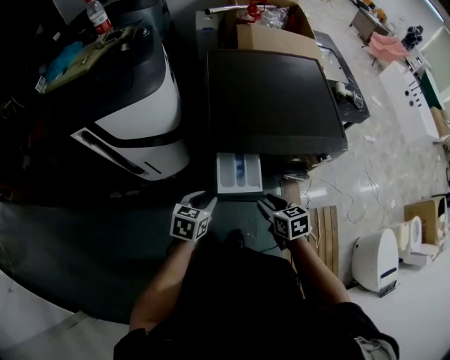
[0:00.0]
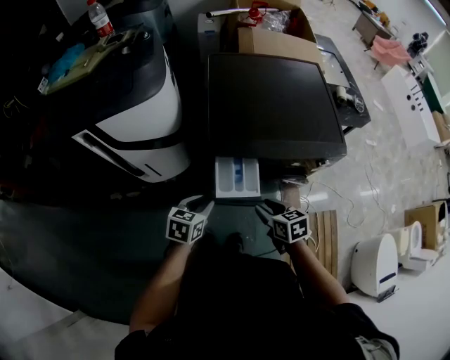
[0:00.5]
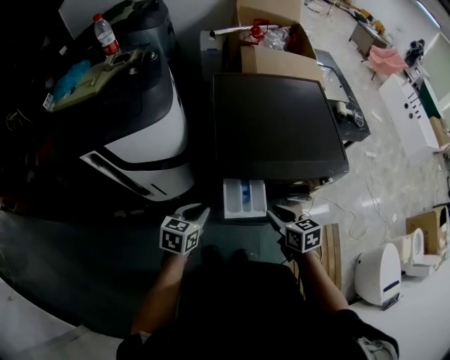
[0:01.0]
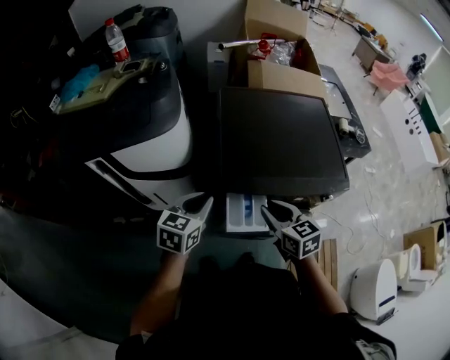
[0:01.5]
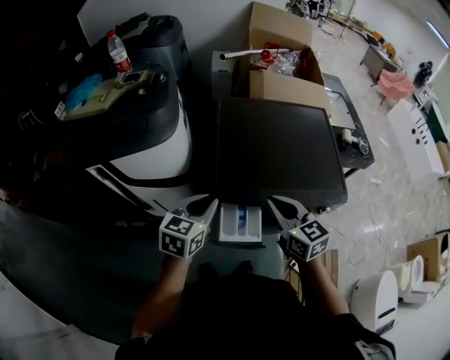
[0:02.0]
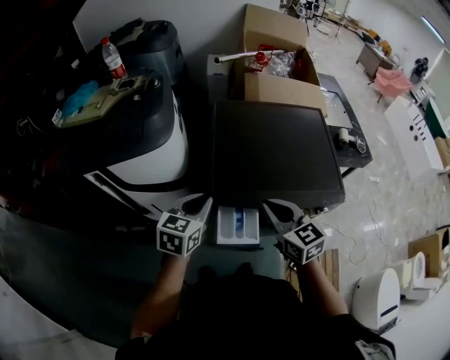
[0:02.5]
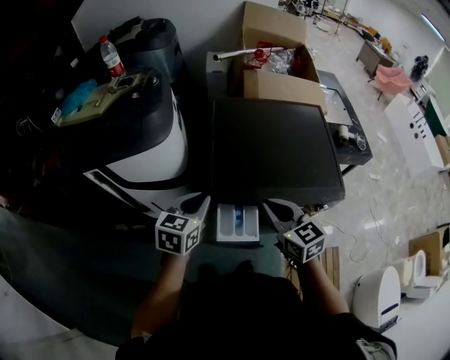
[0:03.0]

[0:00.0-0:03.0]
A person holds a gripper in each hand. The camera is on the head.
0:00.0 to 0:01.5: Both grippers move upward and forward, approximately 15 cm.
0:01.5 to 0:03.0: The right gripper heads upward, covering roughly 5 cm, and closes, while the left gripper moves some 5 cm.

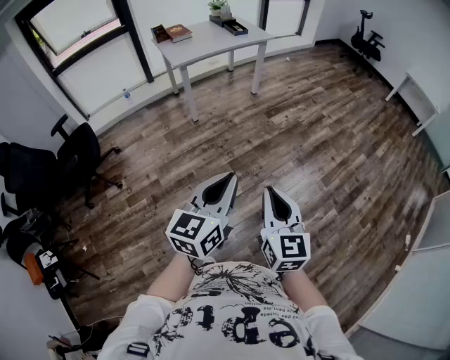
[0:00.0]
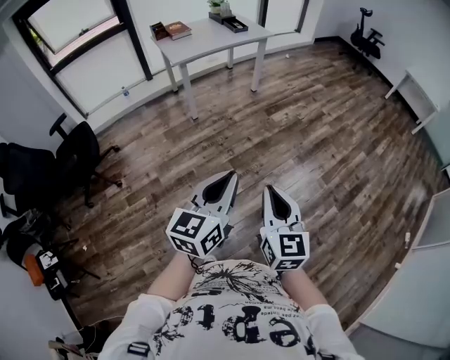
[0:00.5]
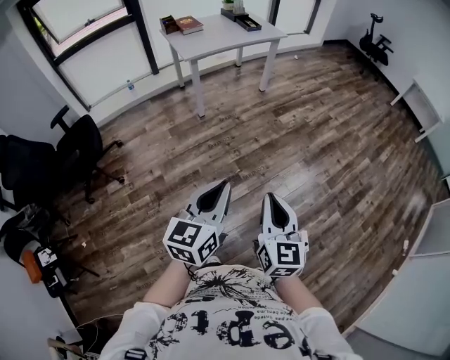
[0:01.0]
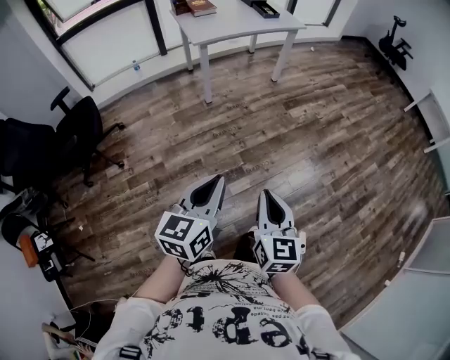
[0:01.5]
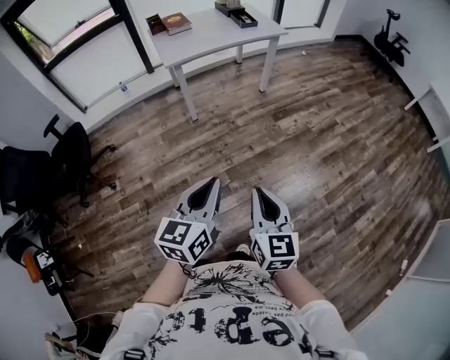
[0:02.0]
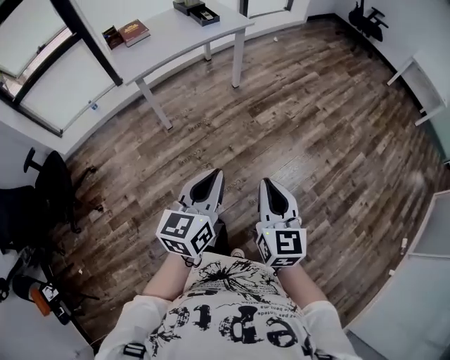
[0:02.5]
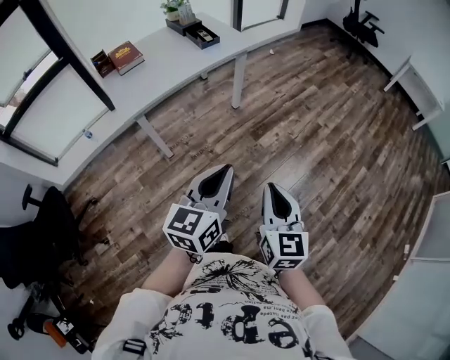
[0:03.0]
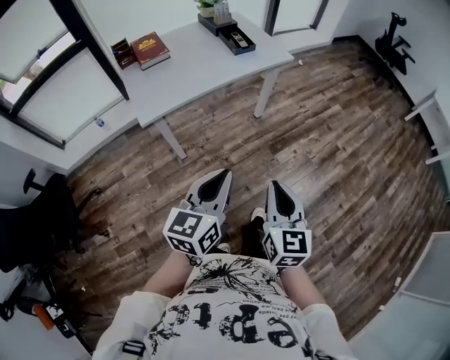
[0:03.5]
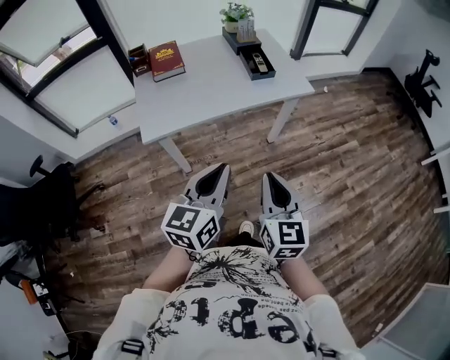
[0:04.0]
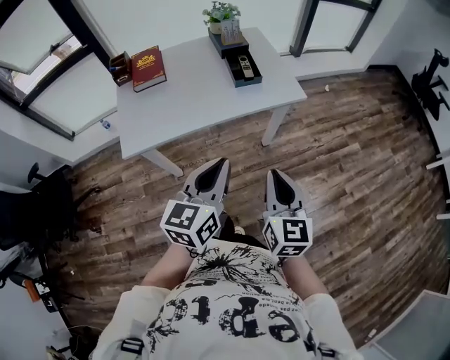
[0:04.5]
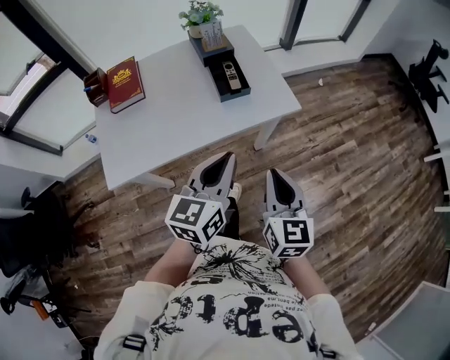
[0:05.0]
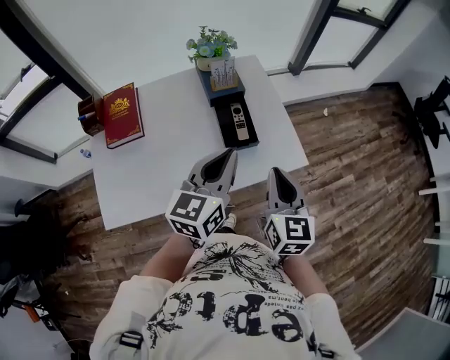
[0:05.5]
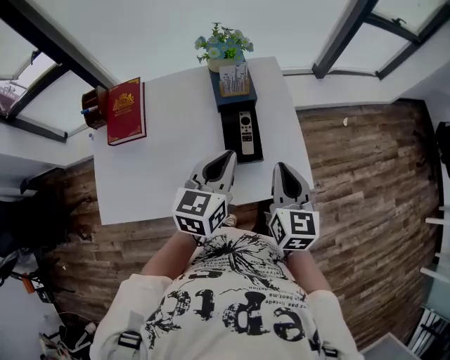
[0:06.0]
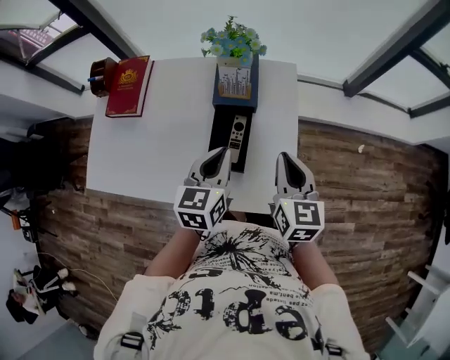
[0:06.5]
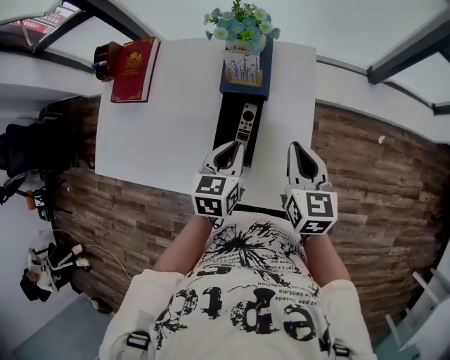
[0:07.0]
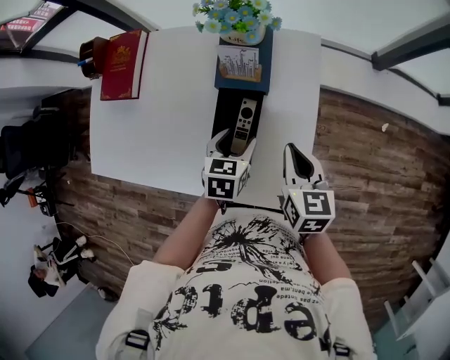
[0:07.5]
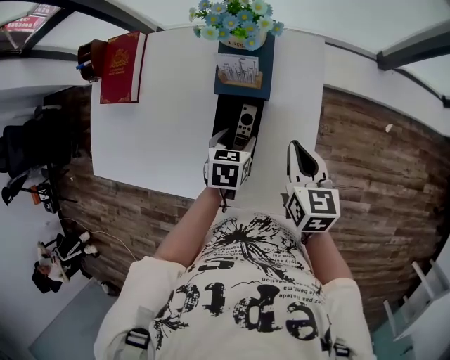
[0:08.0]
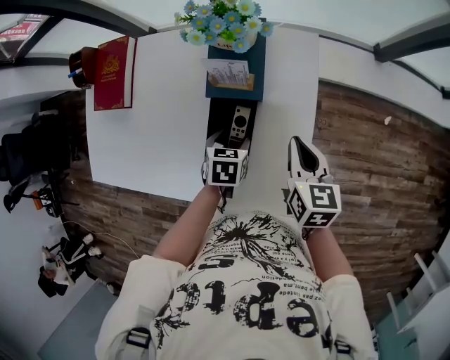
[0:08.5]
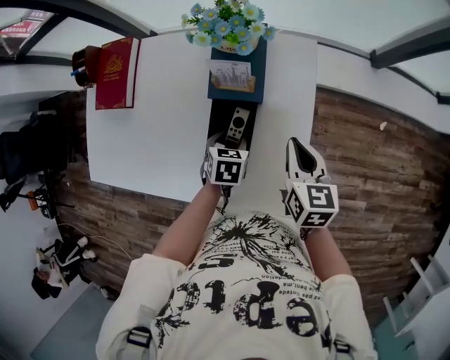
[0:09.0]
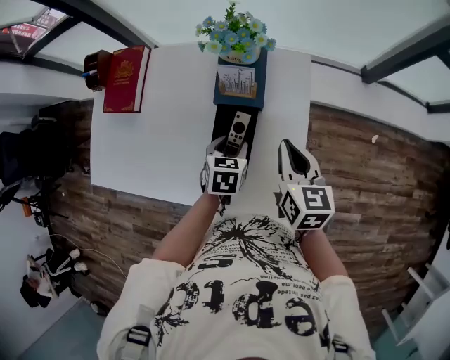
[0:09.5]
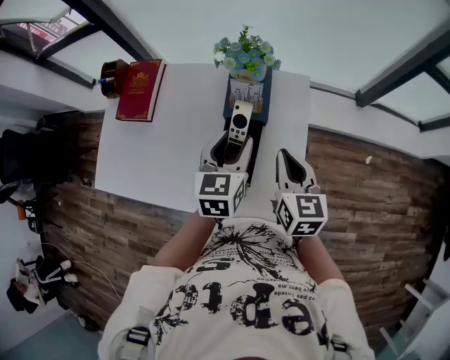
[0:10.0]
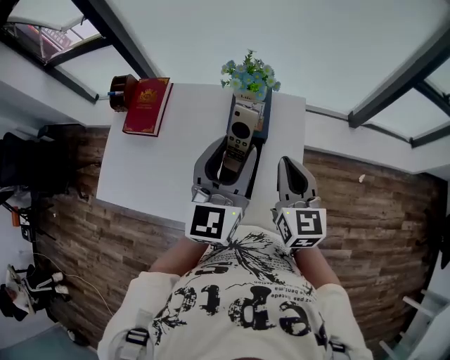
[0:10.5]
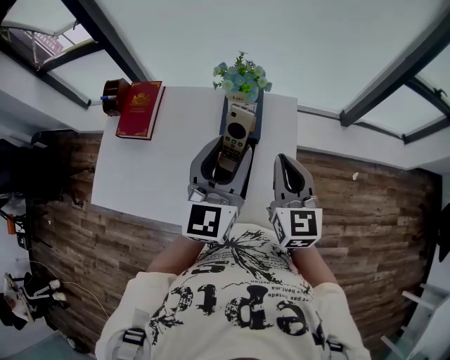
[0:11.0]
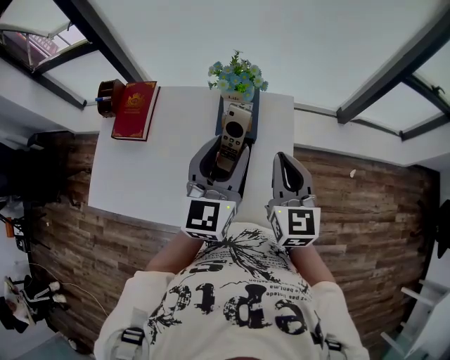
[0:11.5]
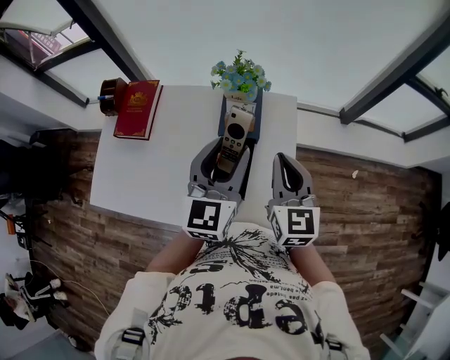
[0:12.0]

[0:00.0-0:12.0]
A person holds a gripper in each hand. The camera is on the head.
0:00.0 to 0:02.0: Both grippers move forward, some 20 cm.
0:02.0 to 0:04.0: Both grippers are carried forward, some 60 cm.
0:04.0 to 0:06.0: The two grippers travel together, forward, roughly 60 cm.
0:06.0 to 0:08.0: The right gripper heads forward, downward and to the right, covering some 20 cm, and rotates approximately 30 degrees. Meanwhile the left gripper moves downward and forward, approximately 25 cm, tilts its fingers roughly 40 degrees downward, and opens up.
0:08.0 to 0:10.0: The right gripper is displaced upward by about 10 cm; the left gripper heads upward, covering approximately 20 cm, and points its fingers some 30 degrees further upward.
0:10.0 to 0:12.0: The two grippers go approximately 10 cm upward. The left gripper changes its angle by approximately 20 degrees.

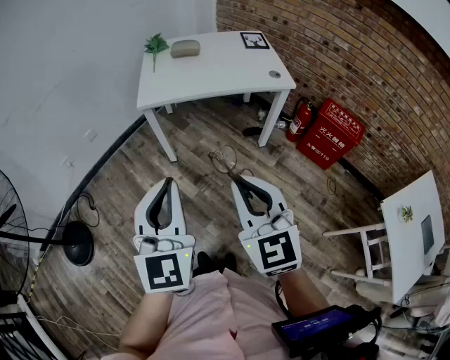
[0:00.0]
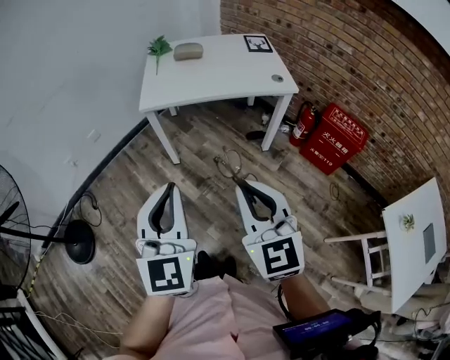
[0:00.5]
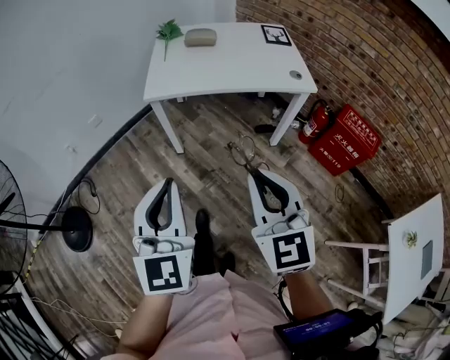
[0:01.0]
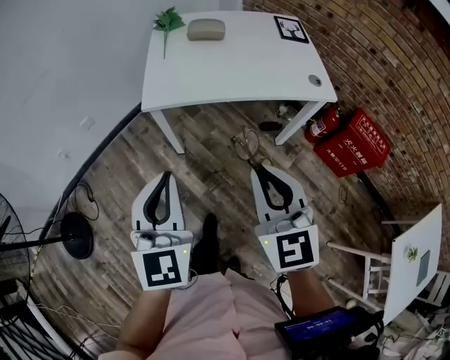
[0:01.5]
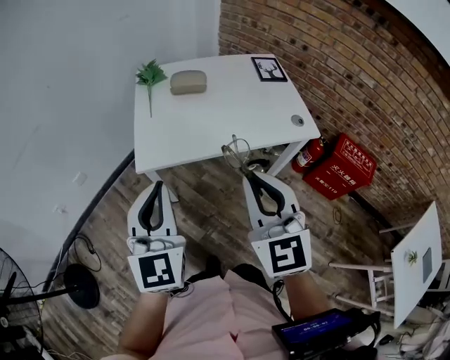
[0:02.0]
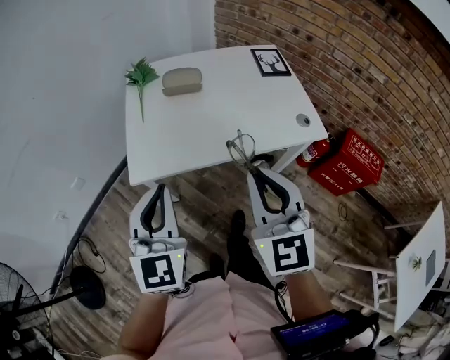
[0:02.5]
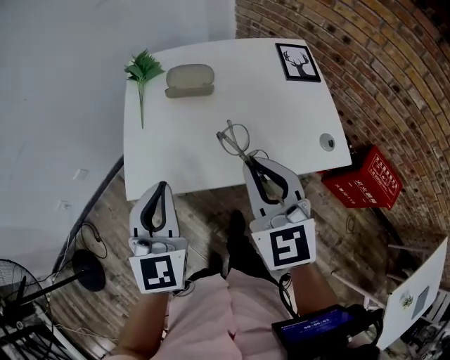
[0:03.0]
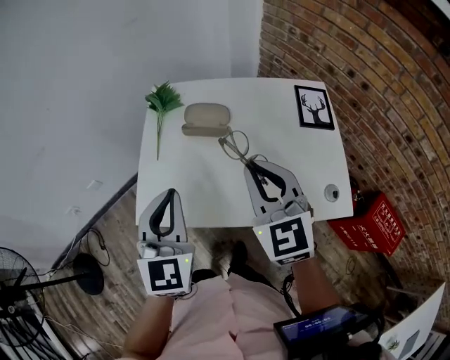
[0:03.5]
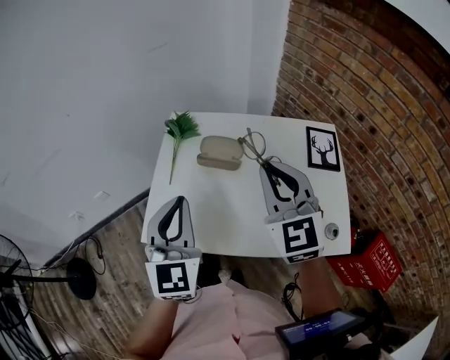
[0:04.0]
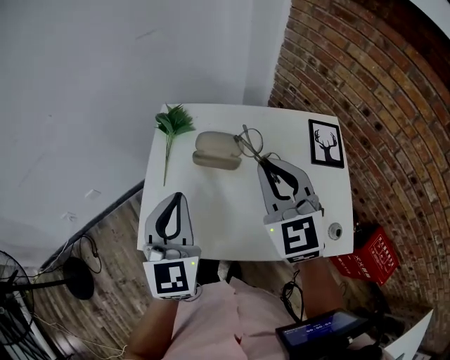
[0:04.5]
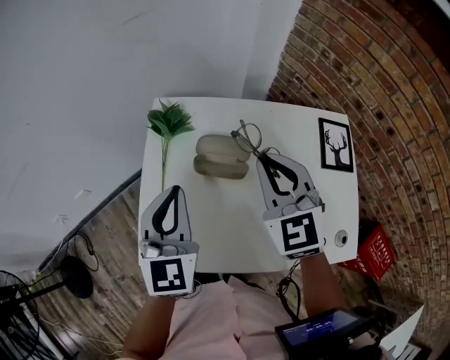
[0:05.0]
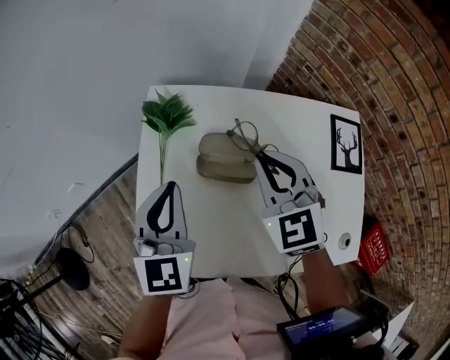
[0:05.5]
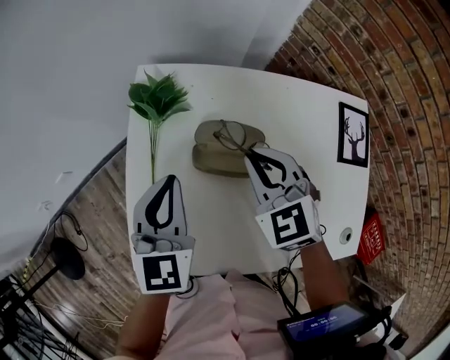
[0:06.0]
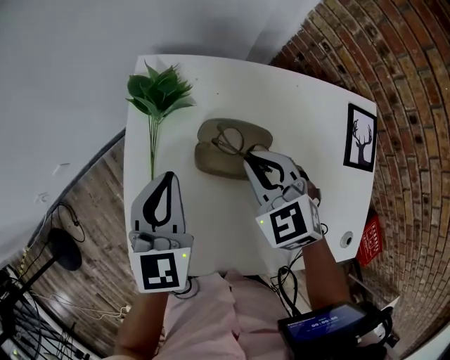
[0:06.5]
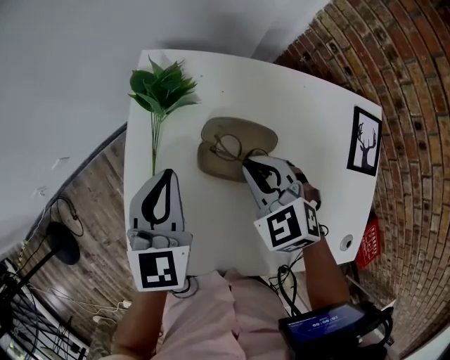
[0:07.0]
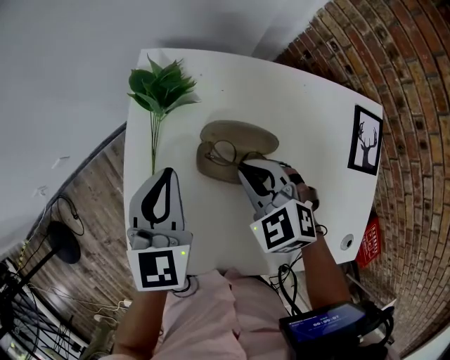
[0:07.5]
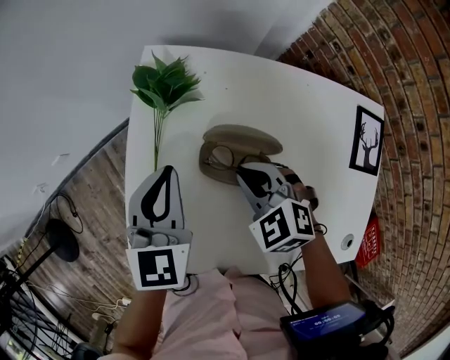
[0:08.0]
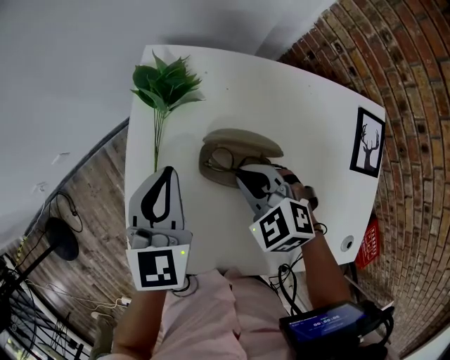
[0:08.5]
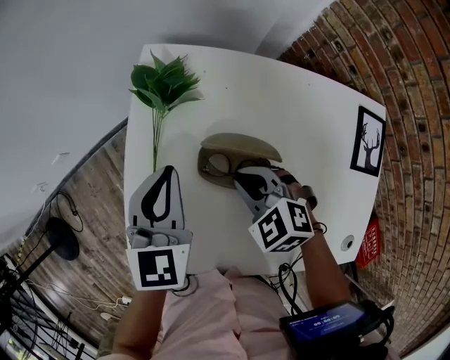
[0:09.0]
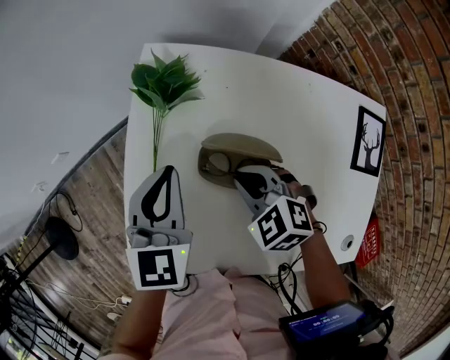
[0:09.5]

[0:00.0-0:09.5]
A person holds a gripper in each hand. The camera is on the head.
0:00.0 to 0:02.0: The grippers both shift forward by about 30 cm.
0:02.0 to 0:04.0: Both grippers travel together forward, about 30 cm.
0:04.0 to 0:05.5: The two grippers go roughly 20 cm forward and downward. The right gripper swivels about 20 degrees.
0:05.5 to 0:07.5: The left gripper travels downward by about 10 cm; the right gripper shifts some 15 cm downward, and changes its angle by about 30 degrees.
0:07.5 to 0:09.5: The grippers make only small movements.

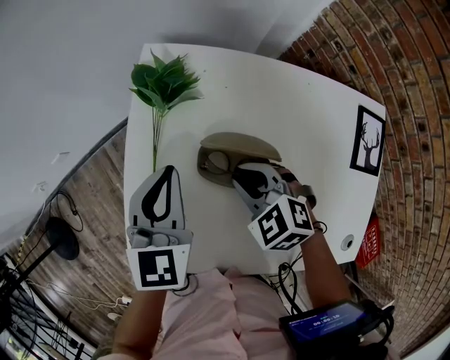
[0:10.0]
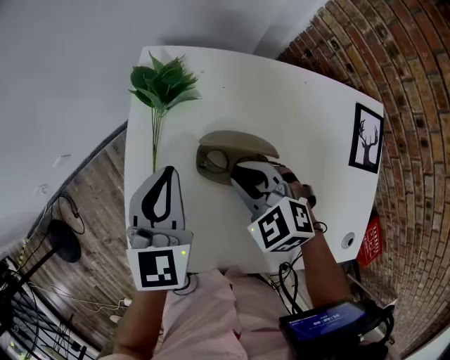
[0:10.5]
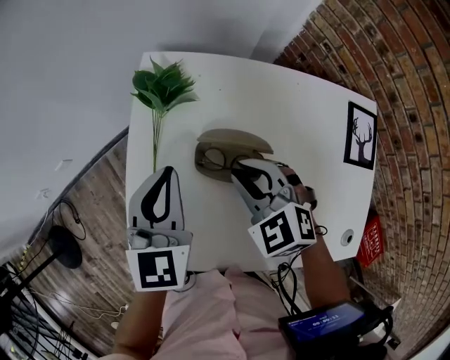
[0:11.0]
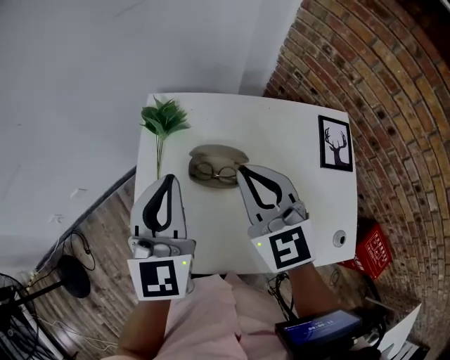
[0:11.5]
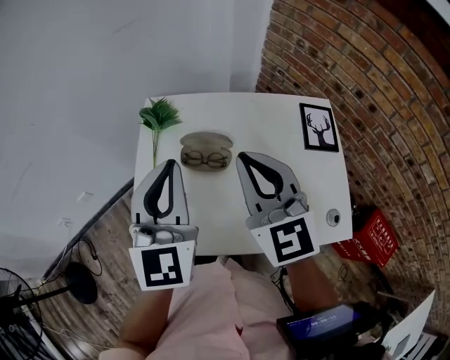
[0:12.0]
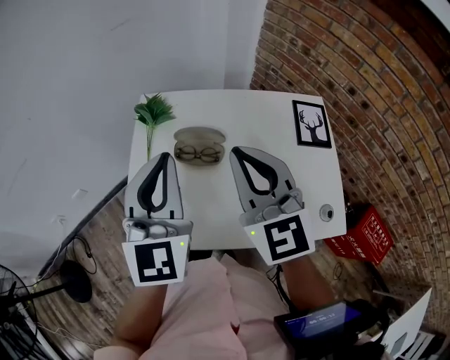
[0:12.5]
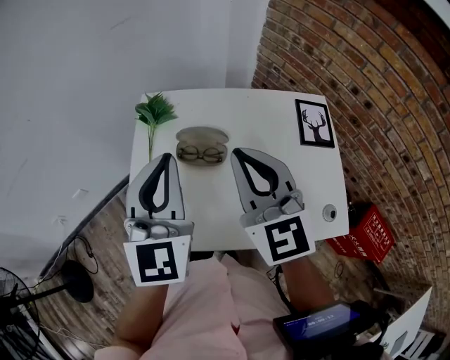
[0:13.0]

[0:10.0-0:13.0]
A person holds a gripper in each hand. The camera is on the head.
0:10.0 to 0:11.5: The left gripper shifts about 15 cm upward and backward; the right gripper travels upward by approximately 20 cm, and tips its fingers upward by roughly 40 degrees.
0:11.5 to 0:13.0: The grippers both shift backward and upward by roughly 10 cm.
